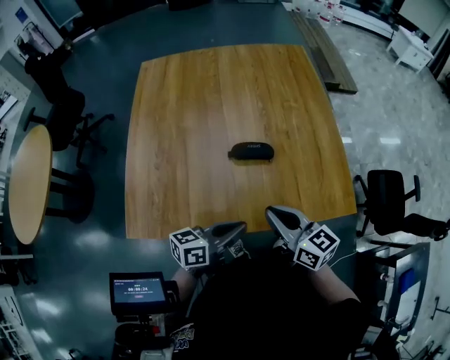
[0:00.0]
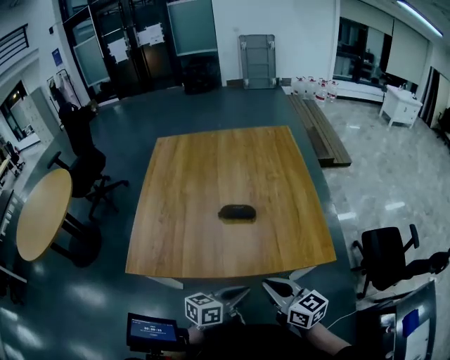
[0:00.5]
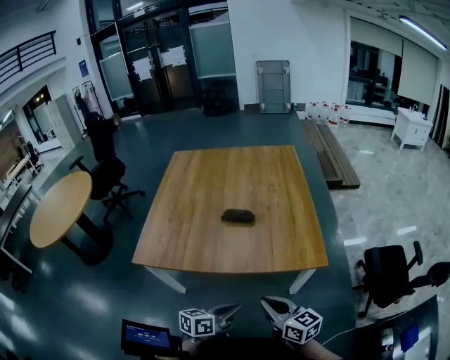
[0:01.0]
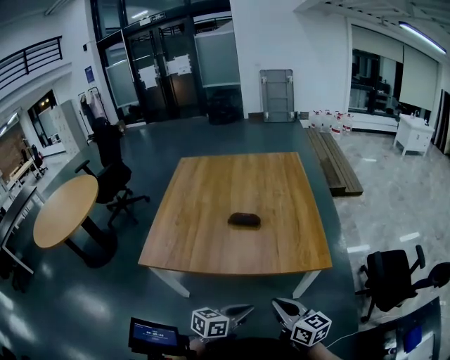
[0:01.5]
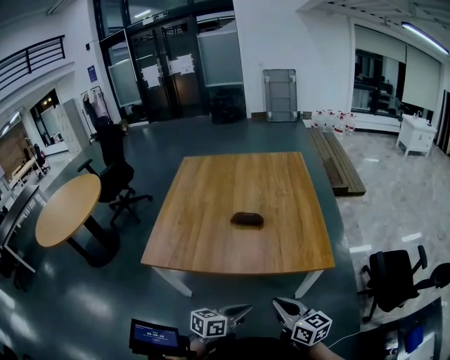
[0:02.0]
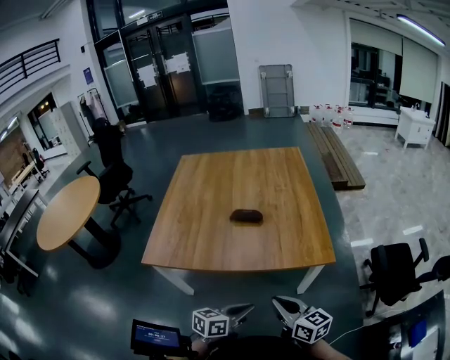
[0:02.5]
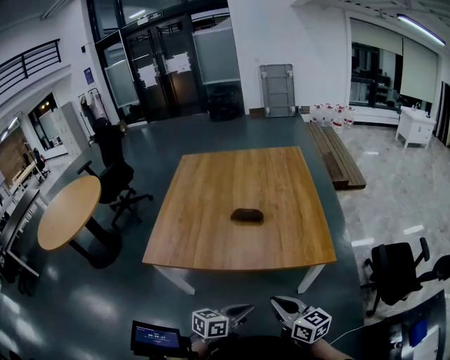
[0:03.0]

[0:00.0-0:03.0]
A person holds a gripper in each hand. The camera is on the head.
0:00.0 to 0:01.5: The two grippers go some 25 cm backward and to the right.
0:01.5 to 0:03.0: The grippers make only small movements.

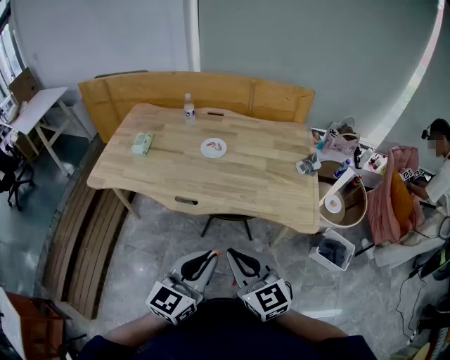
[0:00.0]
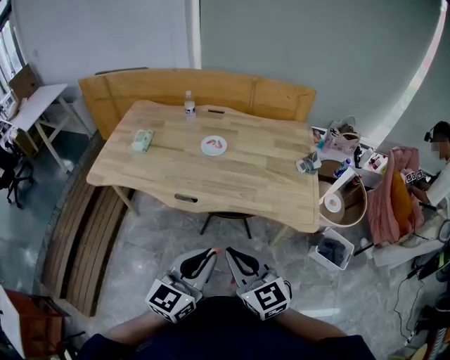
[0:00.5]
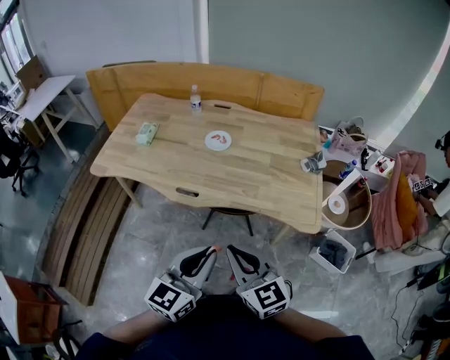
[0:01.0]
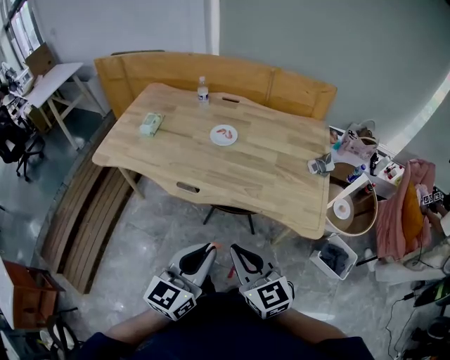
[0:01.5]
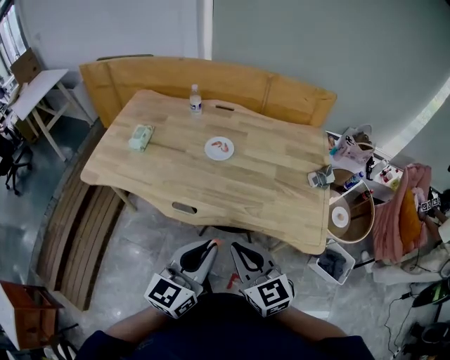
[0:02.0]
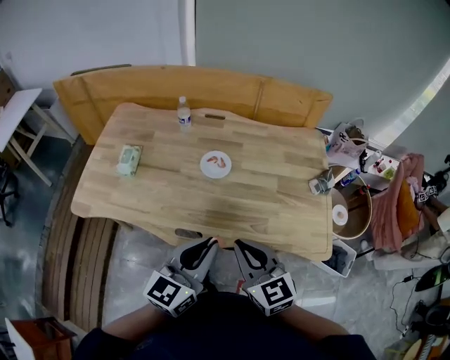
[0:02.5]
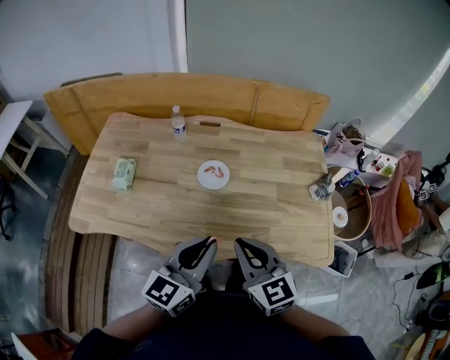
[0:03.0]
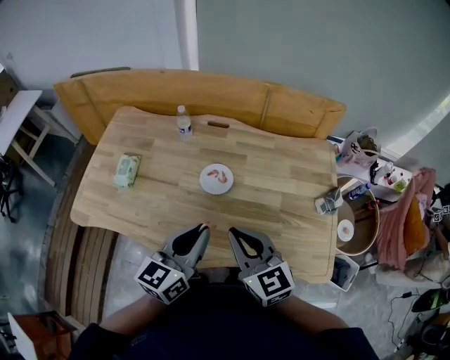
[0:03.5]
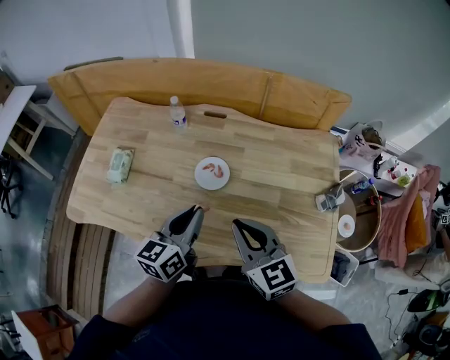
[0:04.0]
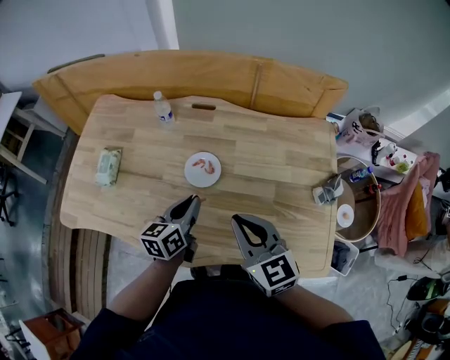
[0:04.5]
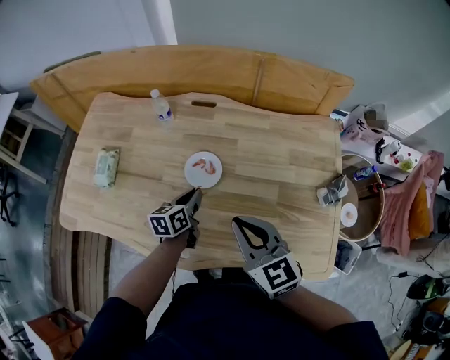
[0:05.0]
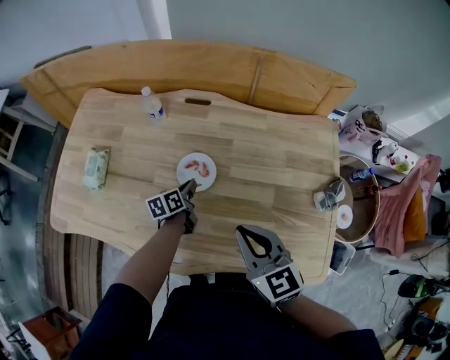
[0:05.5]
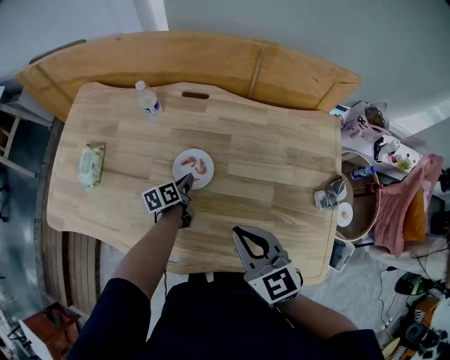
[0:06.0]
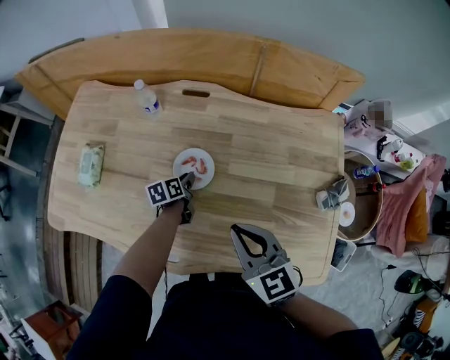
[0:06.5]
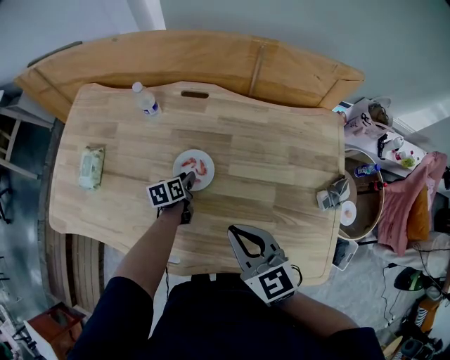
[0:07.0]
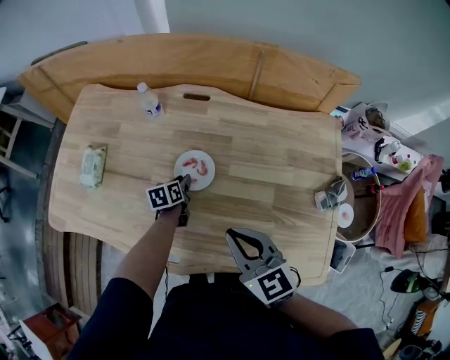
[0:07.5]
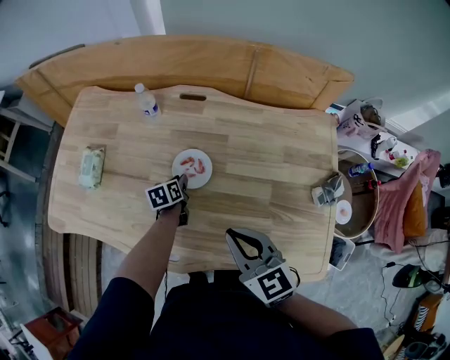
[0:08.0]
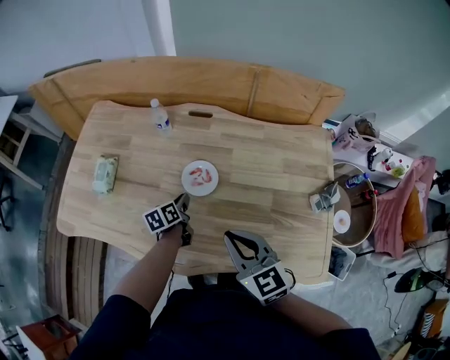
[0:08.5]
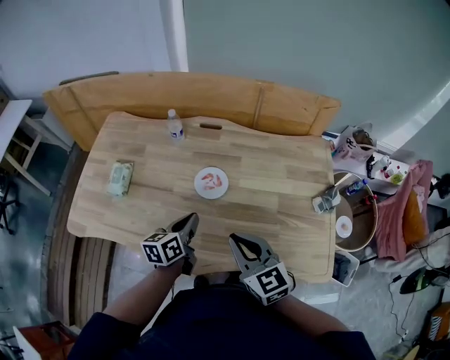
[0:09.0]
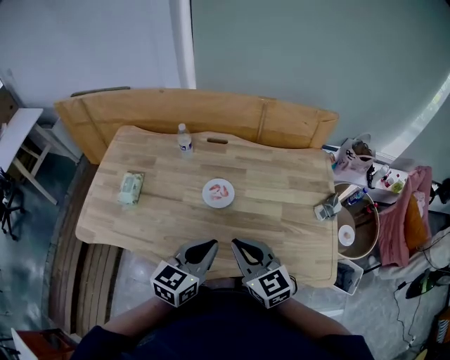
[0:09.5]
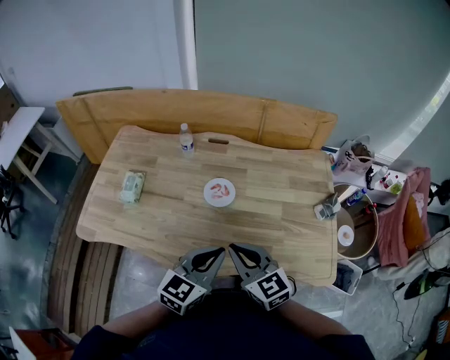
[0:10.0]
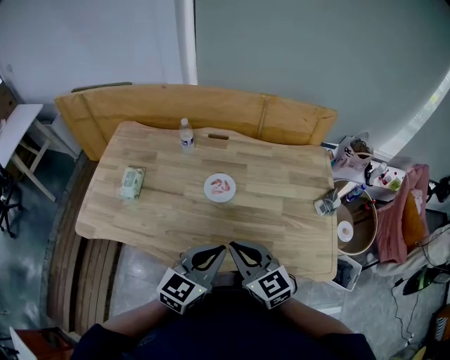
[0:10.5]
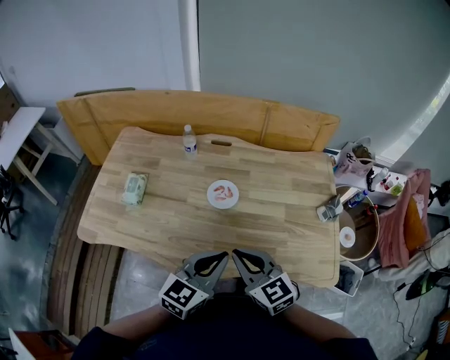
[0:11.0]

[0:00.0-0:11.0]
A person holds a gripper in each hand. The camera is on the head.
0:00.0 to 0:02.0: Both grippers travel together forward, some 15 cm.
0:02.0 to 0:03.5: The two grippers go roughly 25 cm forward.
0:03.5 to 0:05.5: The right gripper is displaced forward, downward and to the right by about 15 cm, while the left gripper heads downward and forward, covering approximately 40 cm, and turns by about 40 degrees.
0:05.5 to 0:07.5: The left gripper moves roughly 5 cm, and opens up.
0:07.5 to 0:09.0: The right gripper is displaced backward, to the left and upward by about 10 cm. Meanwhile the left gripper travels upward and backward by roughly 25 cm, changes its angle by approximately 20 degrees, and closes its fingers.
0:09.0 to 0:11.0: The right gripper goes roughly 5 cm backward. Meanwhile the left gripper is displaced backward and upward by roughly 20 cm, and rotates approximately 40 degrees.

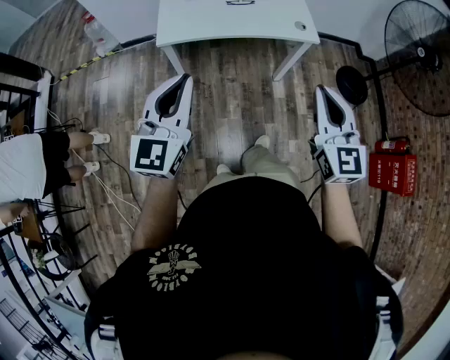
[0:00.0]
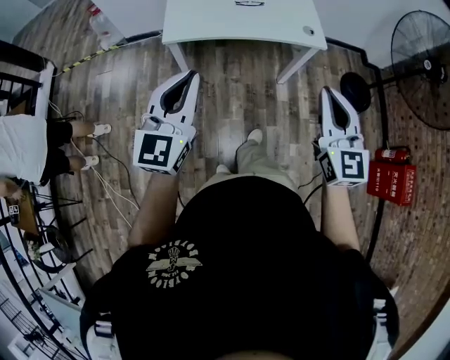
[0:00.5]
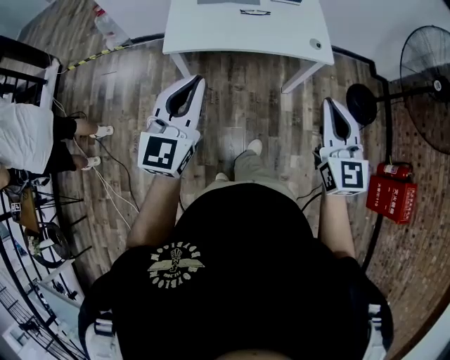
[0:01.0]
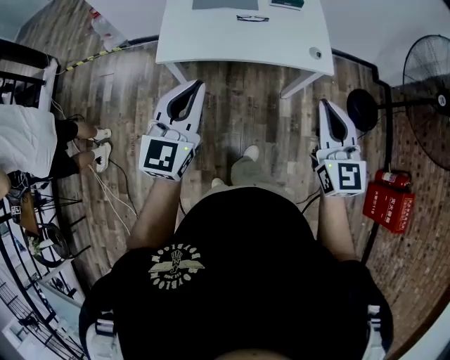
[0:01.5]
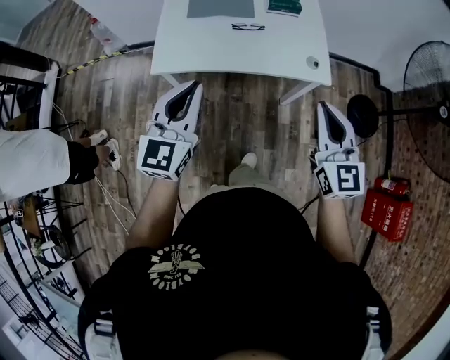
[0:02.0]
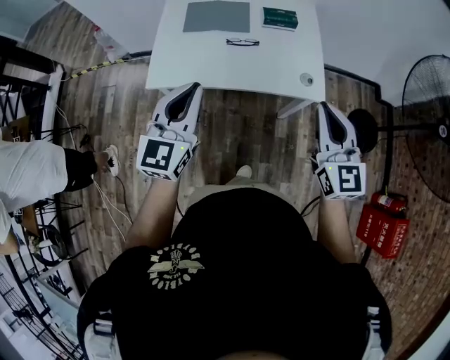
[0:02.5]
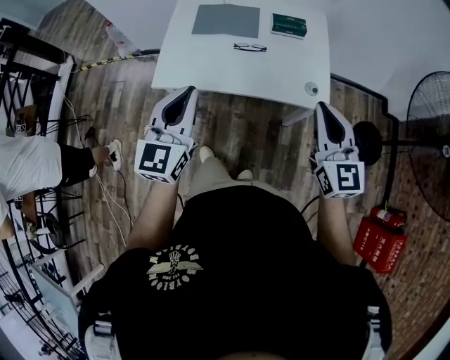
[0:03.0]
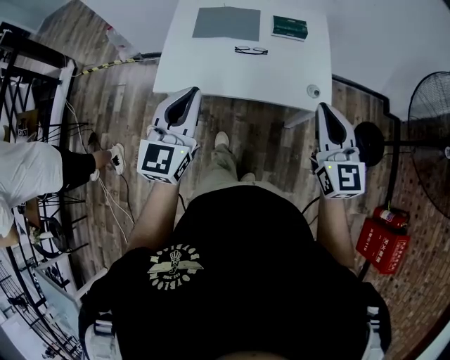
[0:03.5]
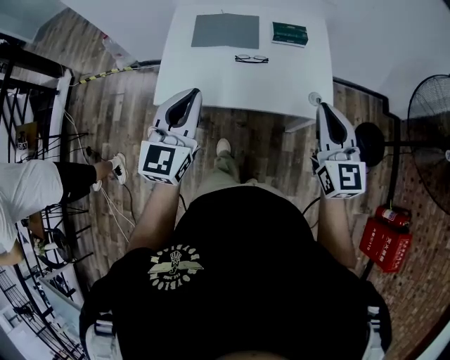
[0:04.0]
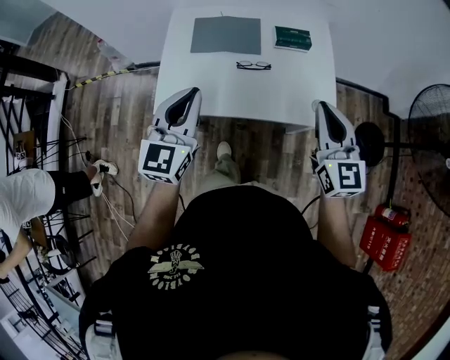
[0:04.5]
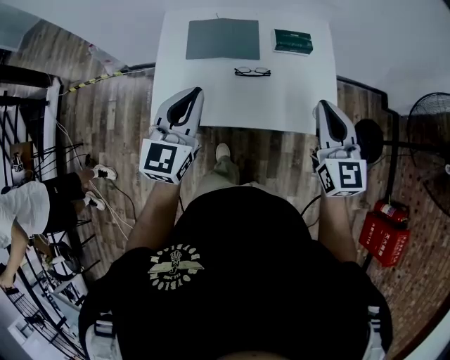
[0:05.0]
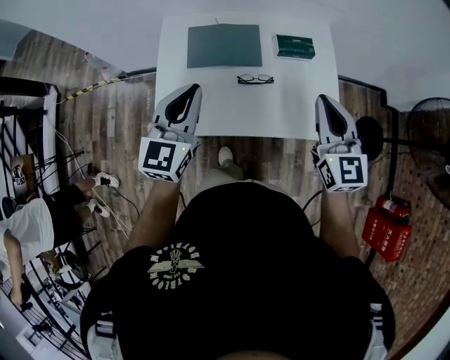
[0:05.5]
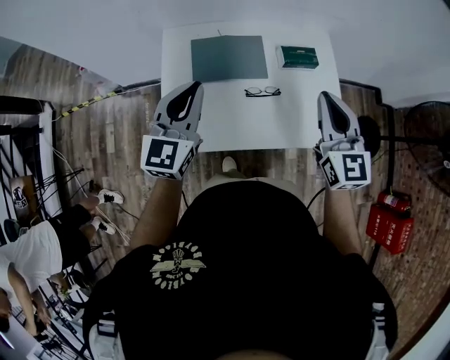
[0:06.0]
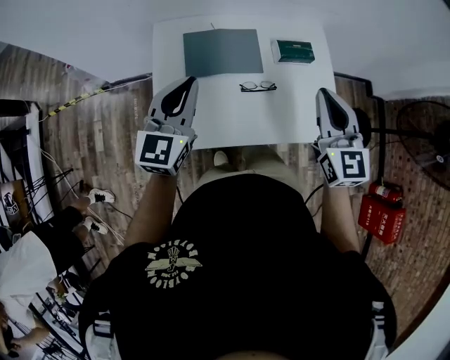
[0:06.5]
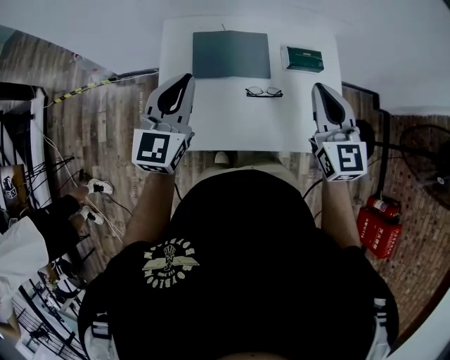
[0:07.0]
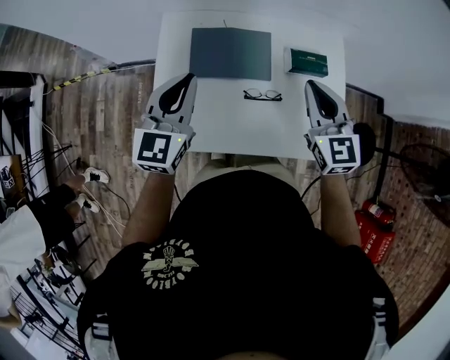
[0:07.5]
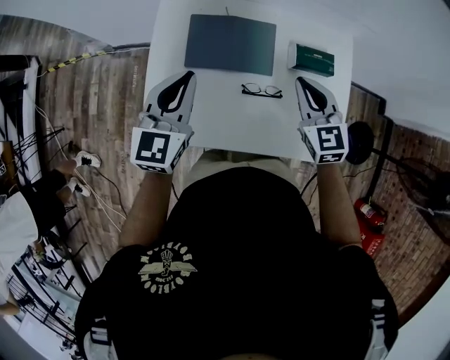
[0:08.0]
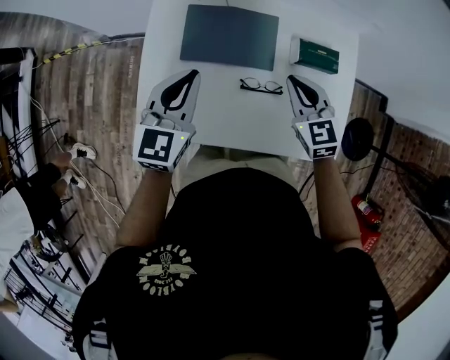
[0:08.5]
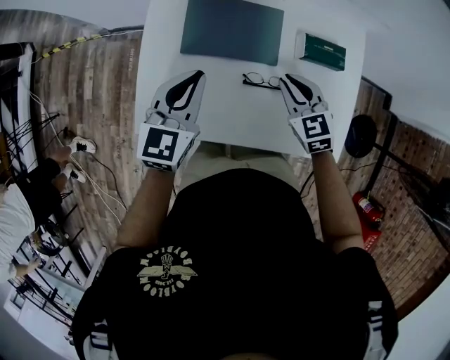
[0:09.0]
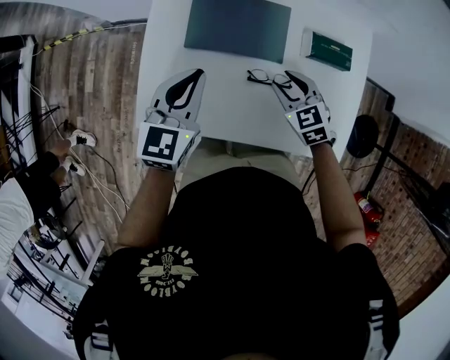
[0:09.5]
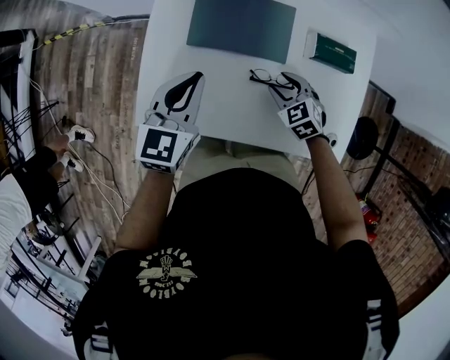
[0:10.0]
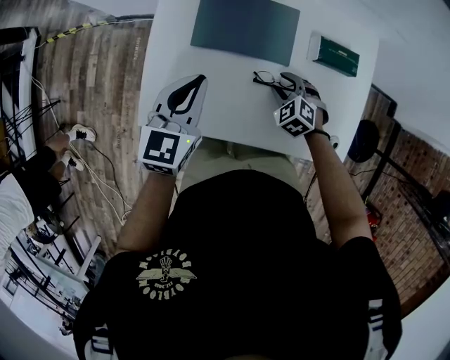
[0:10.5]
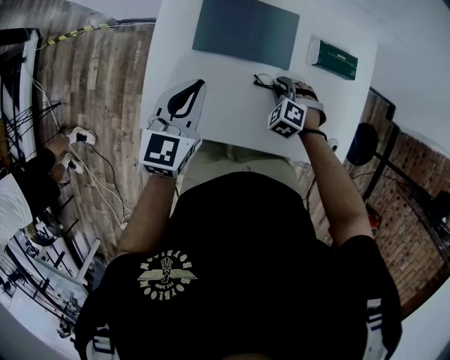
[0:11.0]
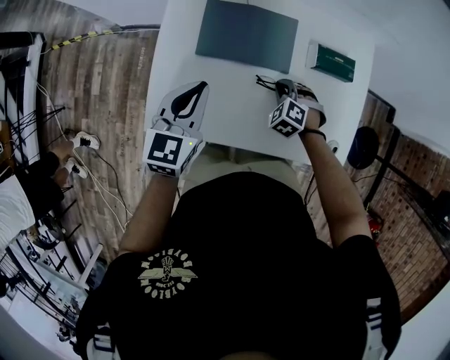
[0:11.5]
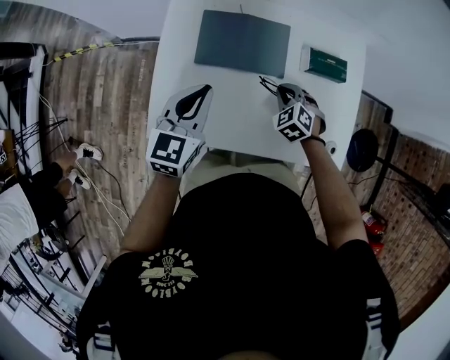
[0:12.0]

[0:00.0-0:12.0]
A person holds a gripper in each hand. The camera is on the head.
0:00.0 to 0:02.0: Both grippers move forward, about 25 cm.
0:02.0 to 0:04.0: Both grippers move forward, roughly 15 cm.
0:04.0 to 0:06.0: Both grippers travel together forward and to the left, some 25 cm.
0:06.0 to 0:08.0: The left gripper travels downward and forward by roughly 10 cm. Meanwhile the right gripper travels downward and forward by roughly 20 cm, and swivels about 20 degrees.
0:08.0 to 0:10.0: The right gripper shifts approximately 20 cm downward, changes its angle by some 30 degrees, and opens its fingers. The left gripper shifts some 10 cm downward.
0:10.0 to 0:12.0: The right gripper closes.

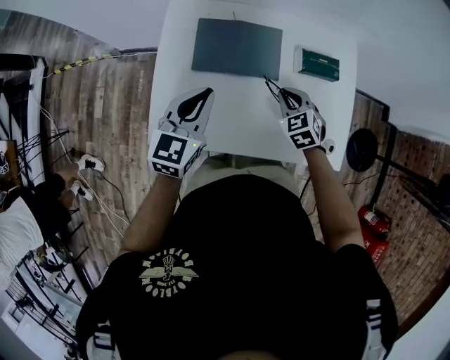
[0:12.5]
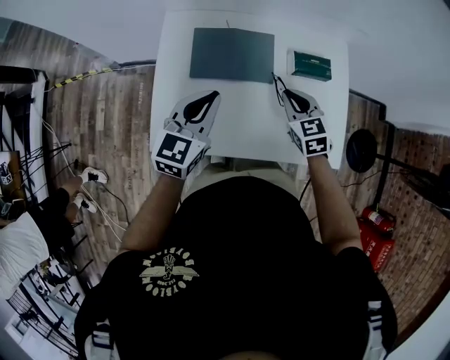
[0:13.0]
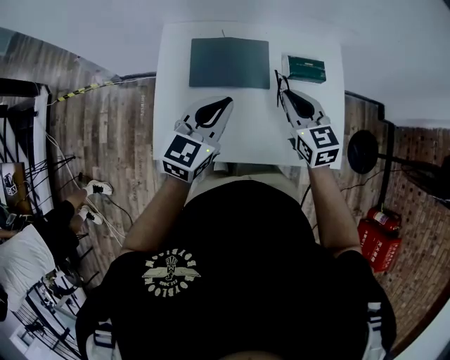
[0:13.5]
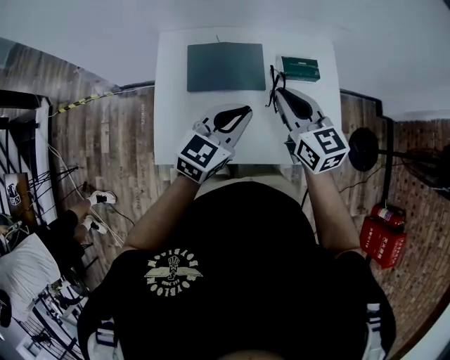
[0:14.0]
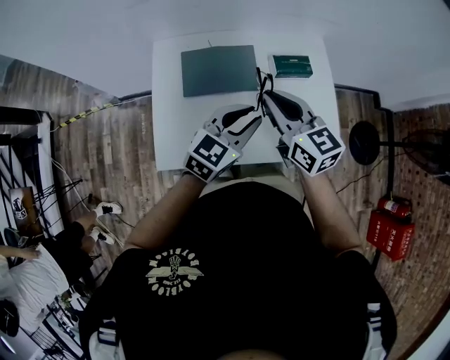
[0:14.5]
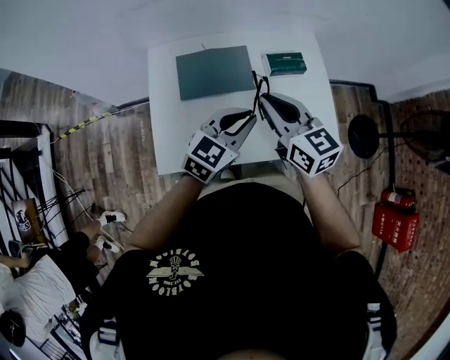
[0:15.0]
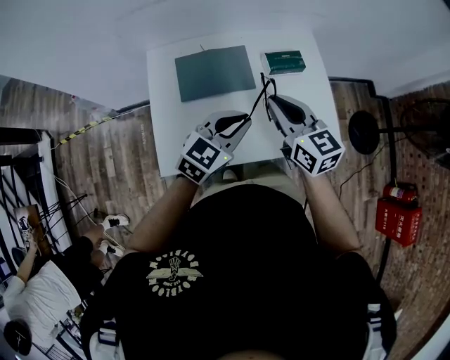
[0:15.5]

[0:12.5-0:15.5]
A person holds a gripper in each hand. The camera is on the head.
0:12.5 to 0:14.0: The left gripper goes approximately 15 cm to the right and upward, and rotates approximately 20 degrees; the right gripper shifts about 20 cm upward, and points its fingers some 30 degrees further upward.
0:14.0 to 0:15.5: The grippers stay close to where they were, moving slightly.
